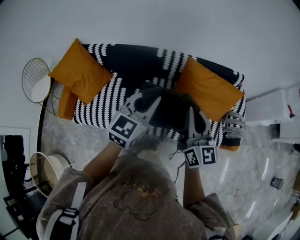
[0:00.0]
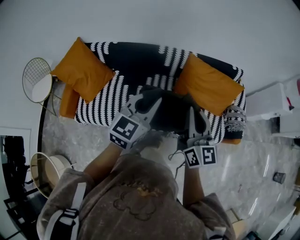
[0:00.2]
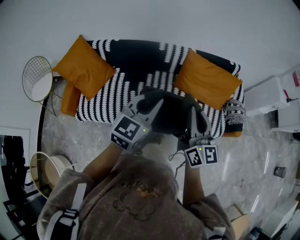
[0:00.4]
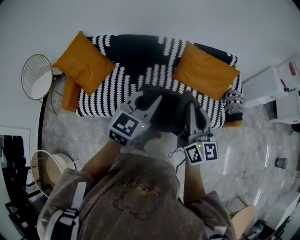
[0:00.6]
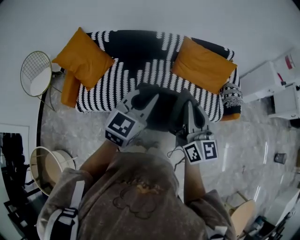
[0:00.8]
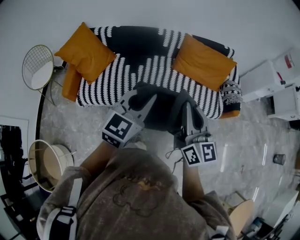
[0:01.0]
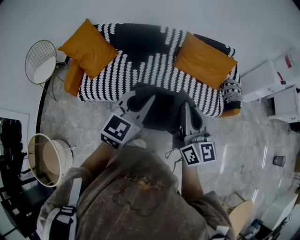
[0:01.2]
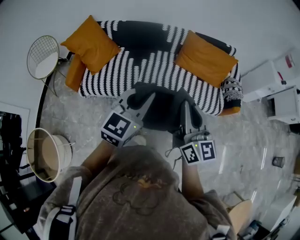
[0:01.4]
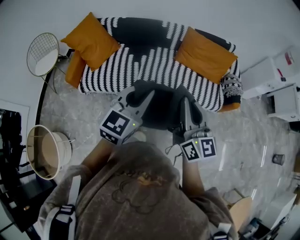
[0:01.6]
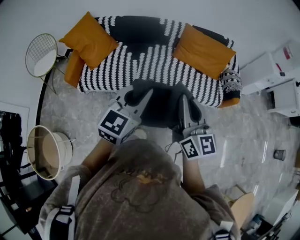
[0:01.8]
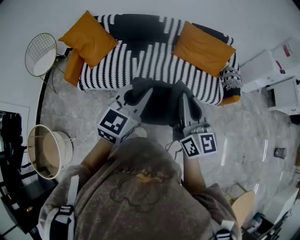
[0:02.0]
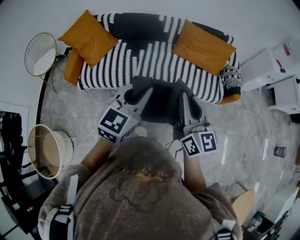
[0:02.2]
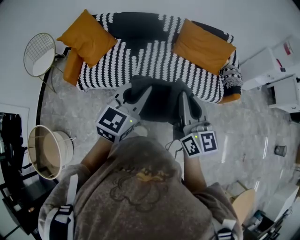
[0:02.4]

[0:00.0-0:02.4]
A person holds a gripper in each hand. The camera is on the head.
0:00.0 to 0:01.2: Both grippers move backward, about 35 cm.
0:01.2 to 0:02.4: Both grippers travel together backward, approximately 5 cm.

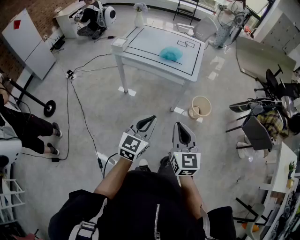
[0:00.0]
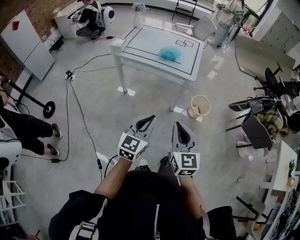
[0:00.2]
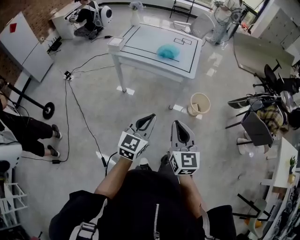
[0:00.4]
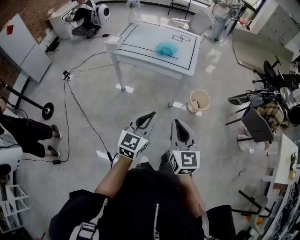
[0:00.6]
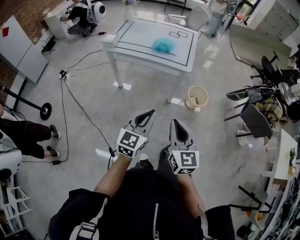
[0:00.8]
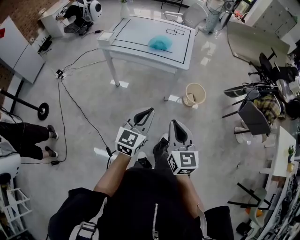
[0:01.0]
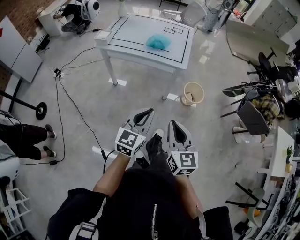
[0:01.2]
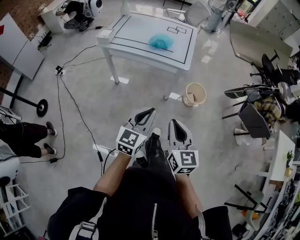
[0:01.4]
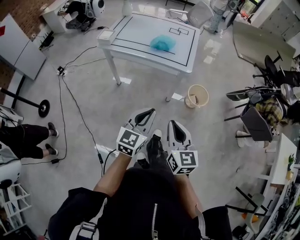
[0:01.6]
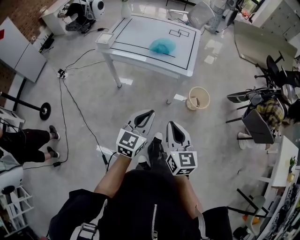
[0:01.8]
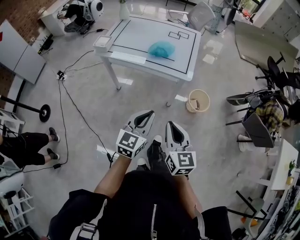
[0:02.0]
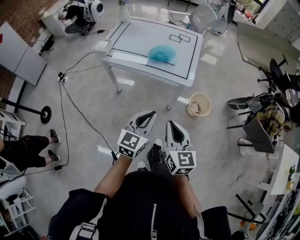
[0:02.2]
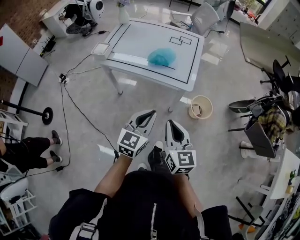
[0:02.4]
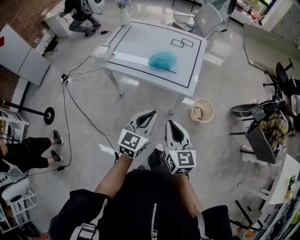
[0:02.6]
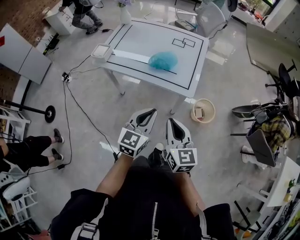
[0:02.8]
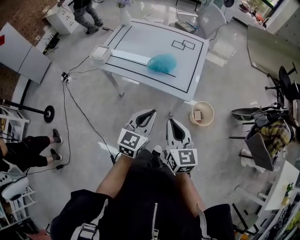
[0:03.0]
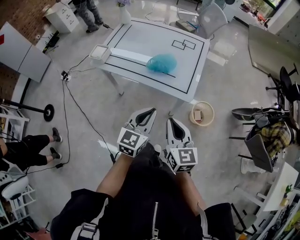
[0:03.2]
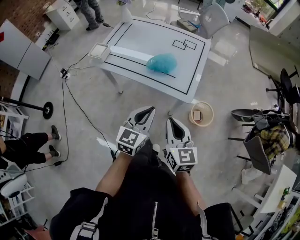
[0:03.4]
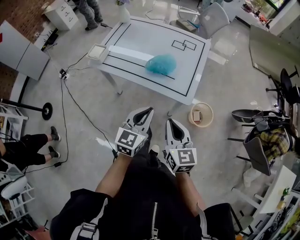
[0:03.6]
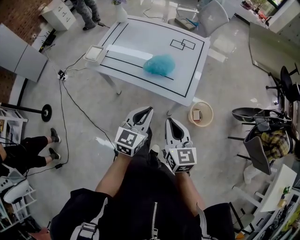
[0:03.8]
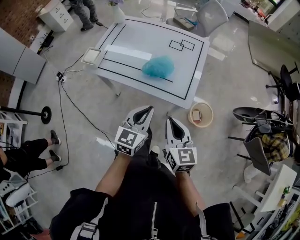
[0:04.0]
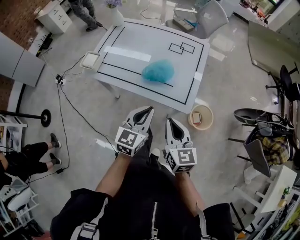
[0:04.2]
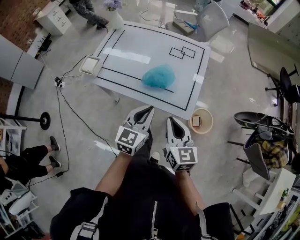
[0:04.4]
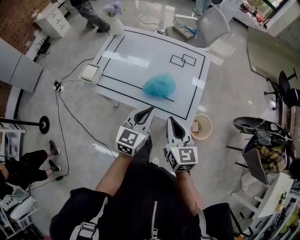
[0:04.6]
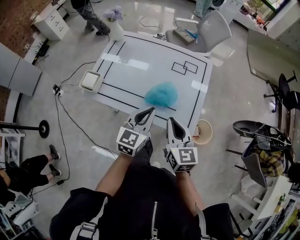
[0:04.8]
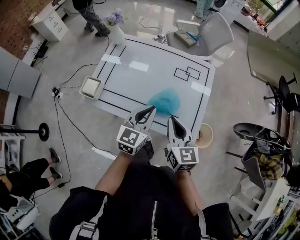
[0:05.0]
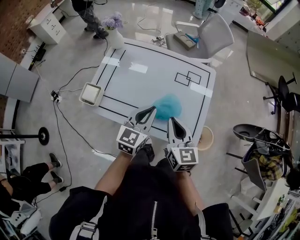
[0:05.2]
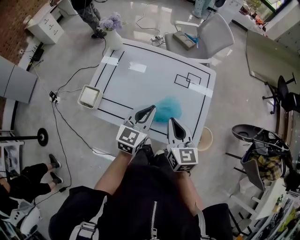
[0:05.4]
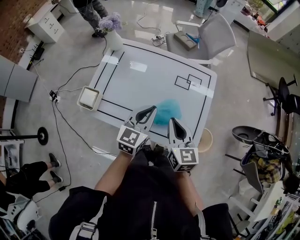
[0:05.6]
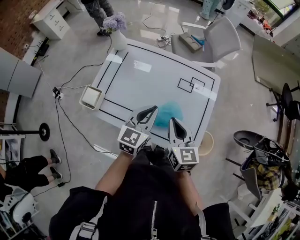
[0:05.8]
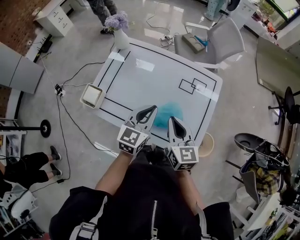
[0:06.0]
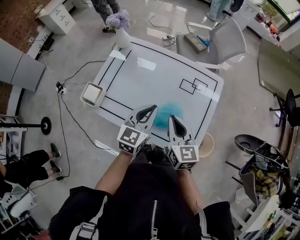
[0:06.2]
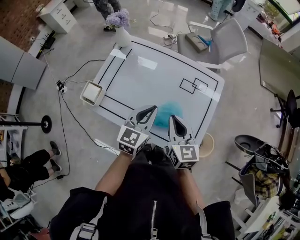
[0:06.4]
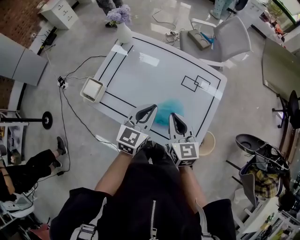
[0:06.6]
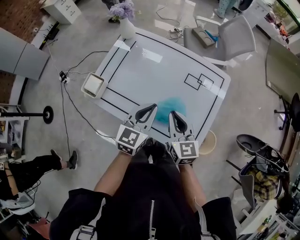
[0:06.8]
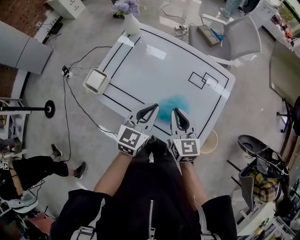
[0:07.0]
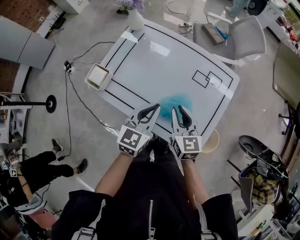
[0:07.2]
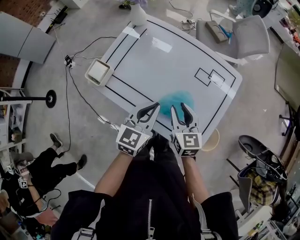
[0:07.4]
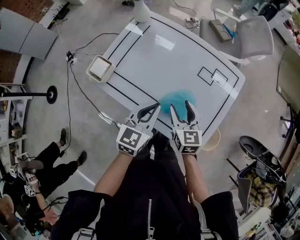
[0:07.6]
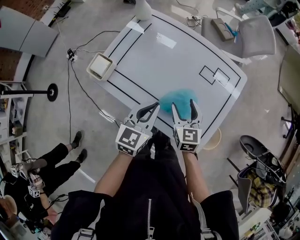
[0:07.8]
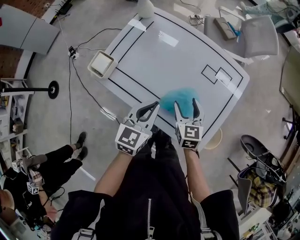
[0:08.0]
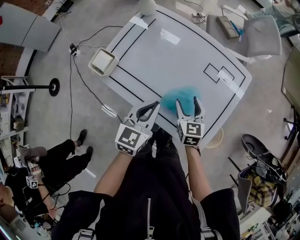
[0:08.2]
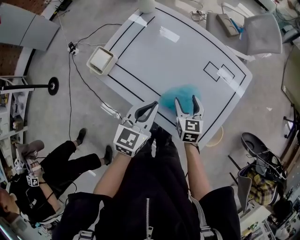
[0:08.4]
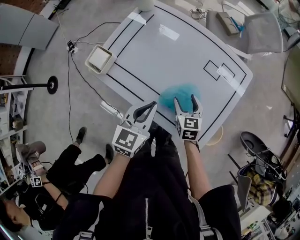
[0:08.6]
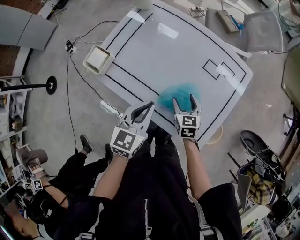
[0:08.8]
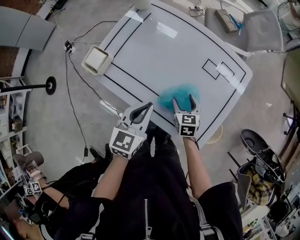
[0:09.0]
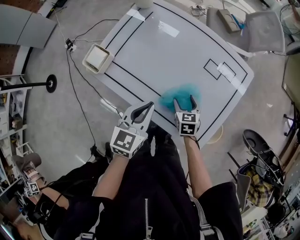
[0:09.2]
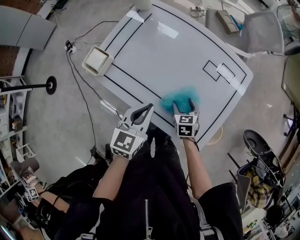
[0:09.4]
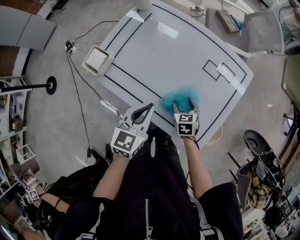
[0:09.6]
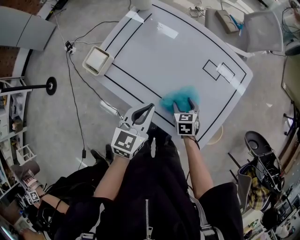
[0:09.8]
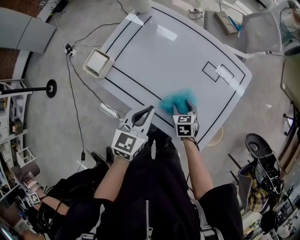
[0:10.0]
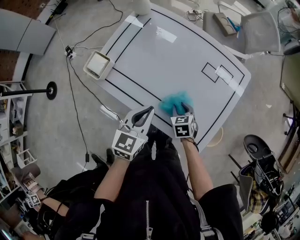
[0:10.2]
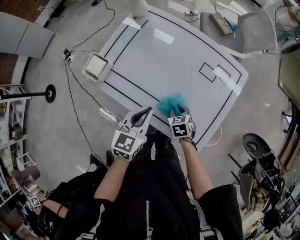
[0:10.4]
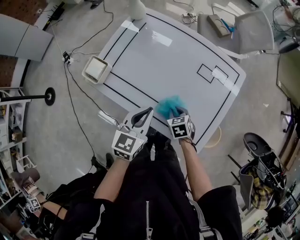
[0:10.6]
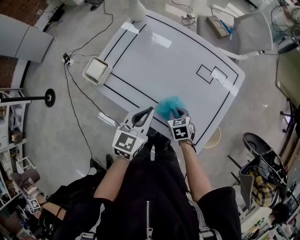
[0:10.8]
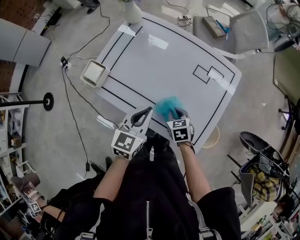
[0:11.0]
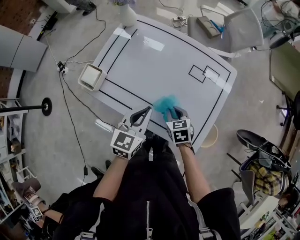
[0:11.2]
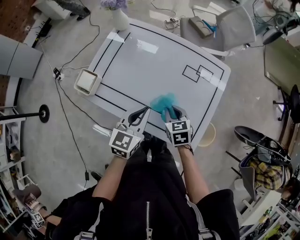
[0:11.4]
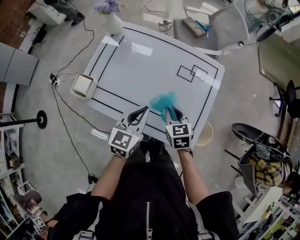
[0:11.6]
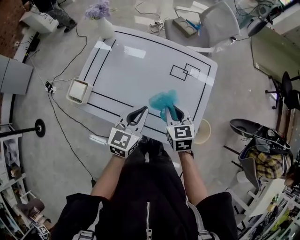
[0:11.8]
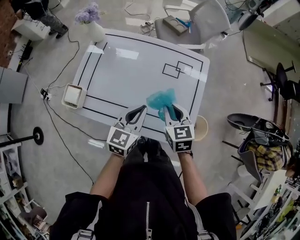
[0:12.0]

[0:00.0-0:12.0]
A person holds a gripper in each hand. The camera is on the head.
0:00.0 to 0:01.6: The right gripper shifts by approximately 5 cm. The left gripper goes some 5 cm forward.
0:01.6 to 0:03.0: The two grippers go roughly 25 cm forward.
0:03.0 to 0:04.4: Both grippers move forward, approximately 15 cm.
0:04.4 to 0:06.0: Both grippers travel together forward, roughly 25 cm.
0:06.0 to 0:07.6: The right gripper shifts approximately 10 cm downward, and opens. Meanwhile the left gripper changes place by about 5 cm.
0:07.6 to 0:09.0: The right gripper shifts roughly 15 cm downward.
0:09.0 to 0:10.4: The right gripper closes.
0:10.4 to 0:12.0: The right gripper heads upward, covering some 20 cm, and changes its angle by approximately 30 degrees. The left gripper heads to the right, covering about 5 cm.

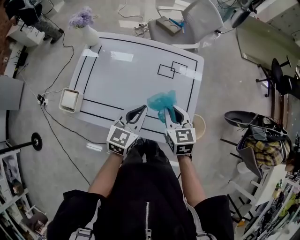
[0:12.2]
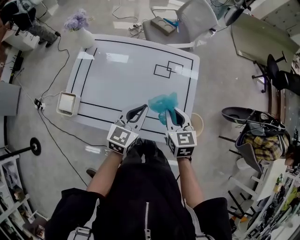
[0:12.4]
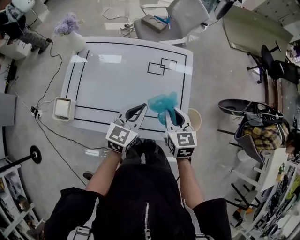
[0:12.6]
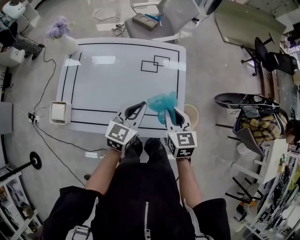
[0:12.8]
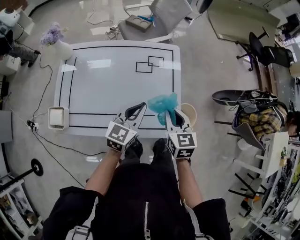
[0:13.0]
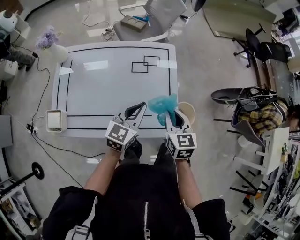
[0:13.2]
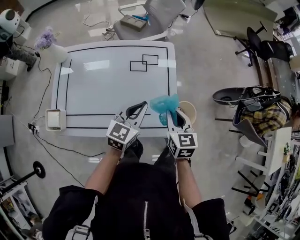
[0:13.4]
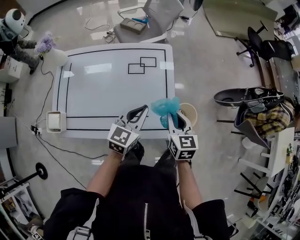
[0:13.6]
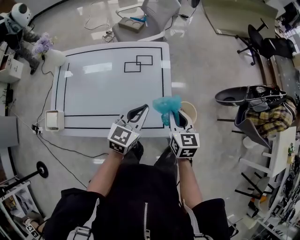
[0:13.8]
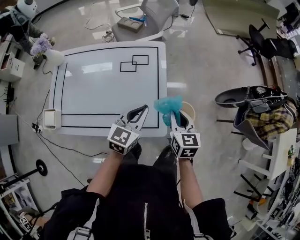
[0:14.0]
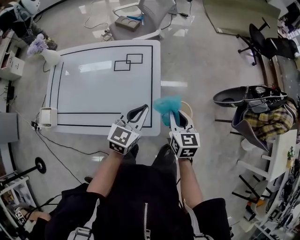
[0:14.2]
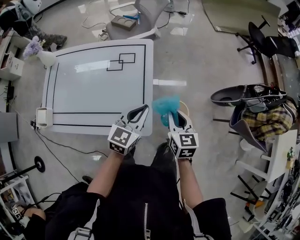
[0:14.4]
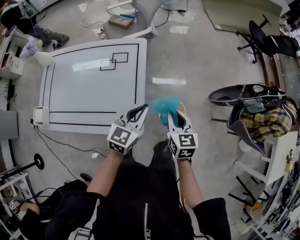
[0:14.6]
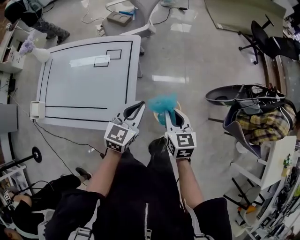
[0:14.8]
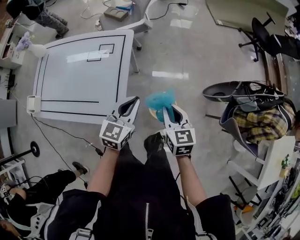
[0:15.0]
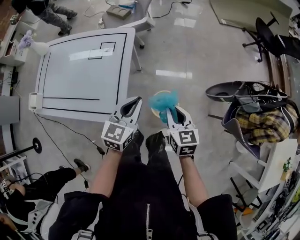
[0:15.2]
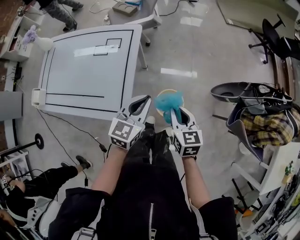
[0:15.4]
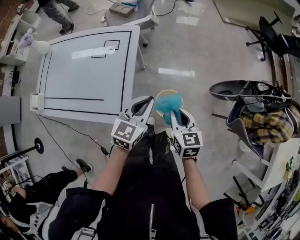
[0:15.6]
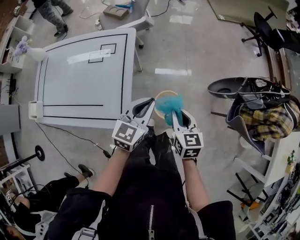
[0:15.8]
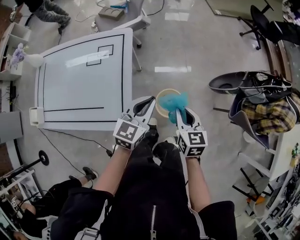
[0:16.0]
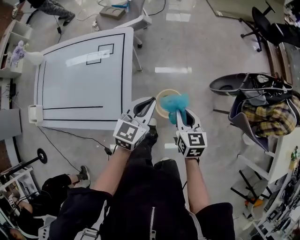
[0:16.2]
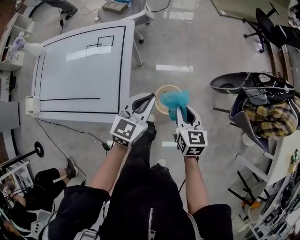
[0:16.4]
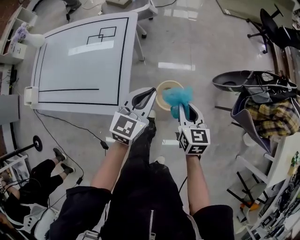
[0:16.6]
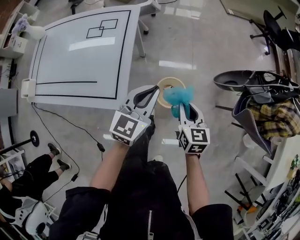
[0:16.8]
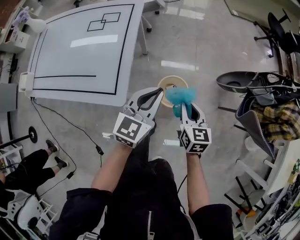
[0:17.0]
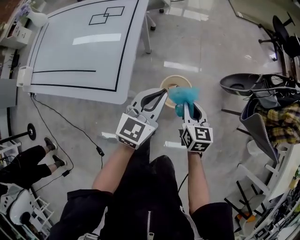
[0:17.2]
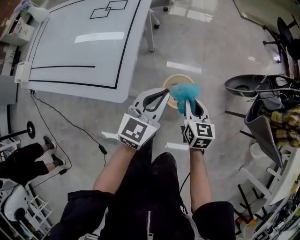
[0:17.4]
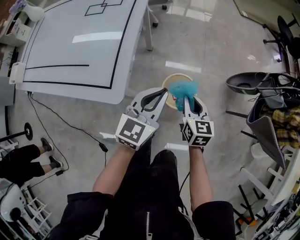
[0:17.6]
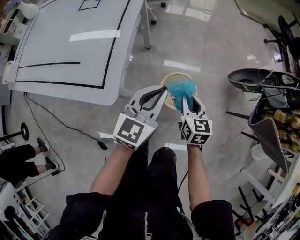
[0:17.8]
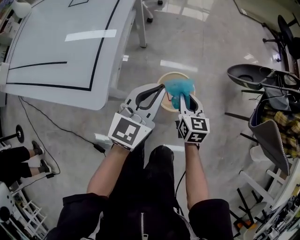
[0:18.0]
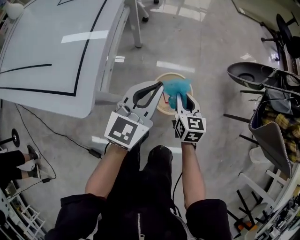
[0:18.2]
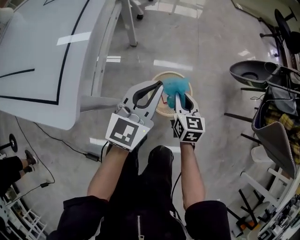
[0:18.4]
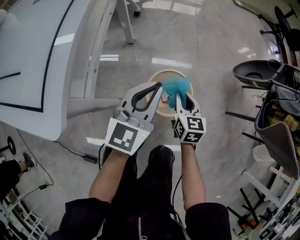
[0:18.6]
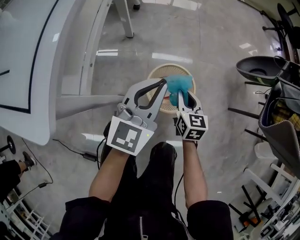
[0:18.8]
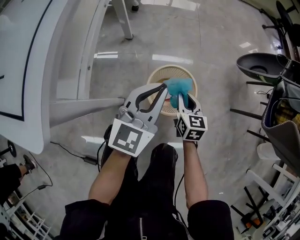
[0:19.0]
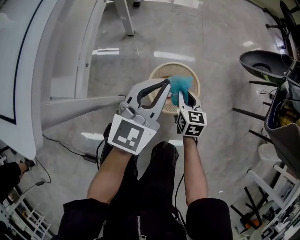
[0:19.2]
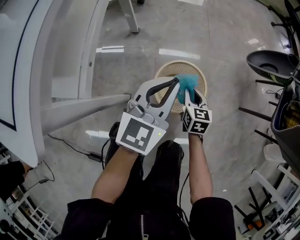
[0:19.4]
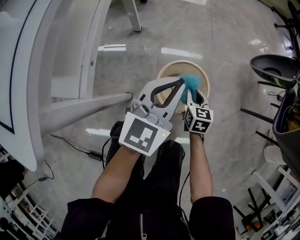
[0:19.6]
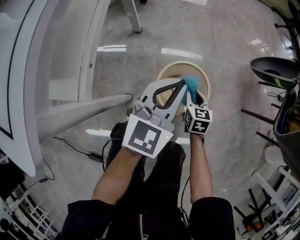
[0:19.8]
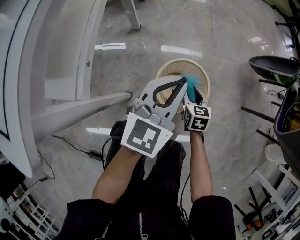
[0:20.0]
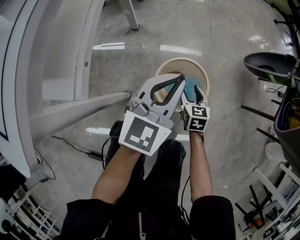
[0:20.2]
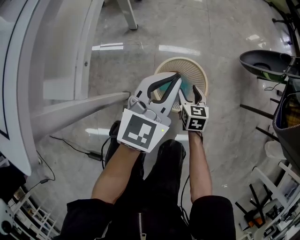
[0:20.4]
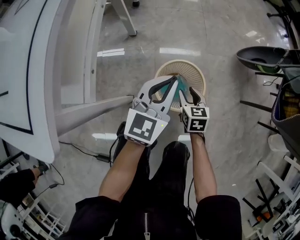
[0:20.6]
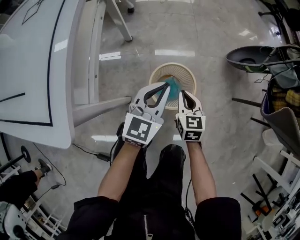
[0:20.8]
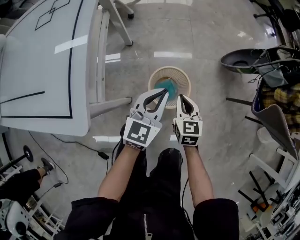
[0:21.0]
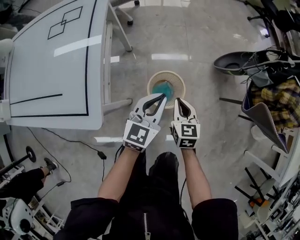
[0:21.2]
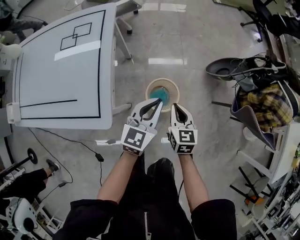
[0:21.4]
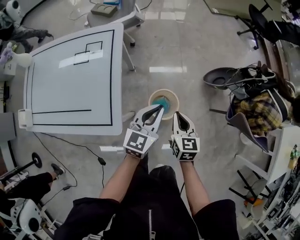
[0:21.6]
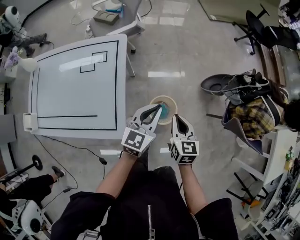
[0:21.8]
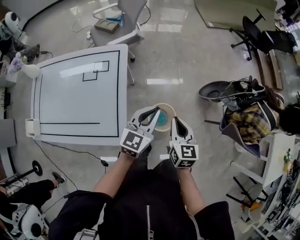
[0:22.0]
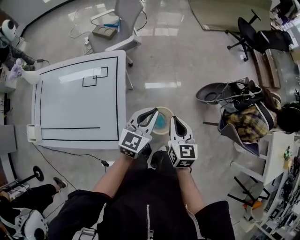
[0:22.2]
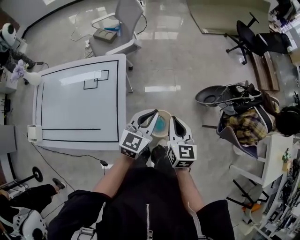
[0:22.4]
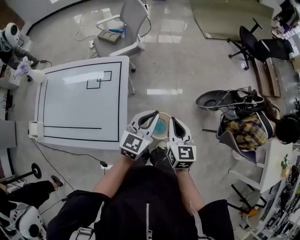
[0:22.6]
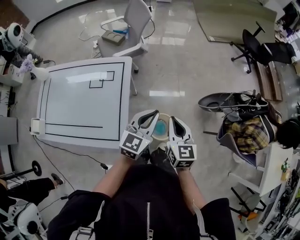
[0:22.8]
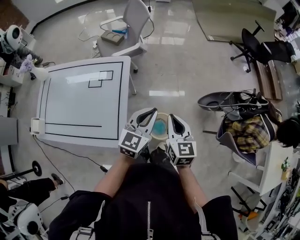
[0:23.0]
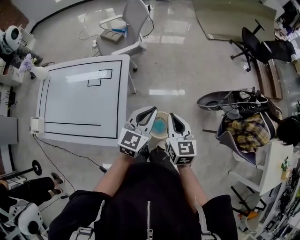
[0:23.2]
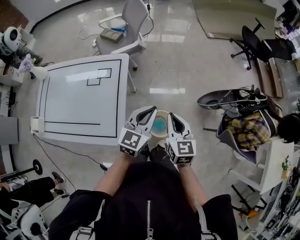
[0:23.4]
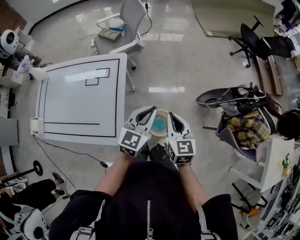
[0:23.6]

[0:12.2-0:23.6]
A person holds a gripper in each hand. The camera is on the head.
0:12.2 to 0:13.6: Both grippers move to the right, roughly 15 cm. The right gripper changes its angle by approximately 20 degrees.
0:13.6 to 0:15.0: Both grippers move to the right, about 25 cm.
0:15.0 to 0:16.4: The right gripper shifts about 5 cm downward, while the left gripper ends up approximately 5 cm from where it was.
0:16.4 to 0:17.8: Both grippers travel together downward, some 25 cm.
0:17.8 to 0:19.4: The two grippers go approximately 25 cm downward.
0:19.4 to 0:20.8: The right gripper shifts some 10 cm upward, and opens and closes again.
0:20.8 to 0:22.2: The grippers both shift upward by roughly 50 cm.
0:22.2 to 0:23.6: The grippers move only a little.
